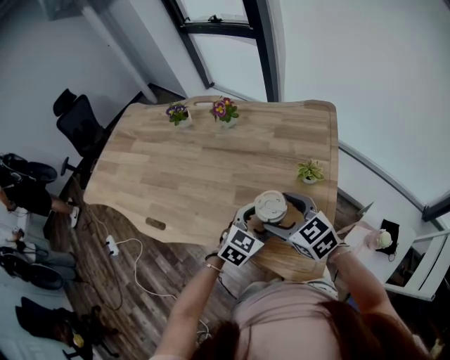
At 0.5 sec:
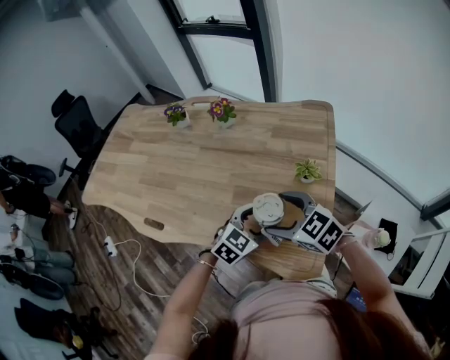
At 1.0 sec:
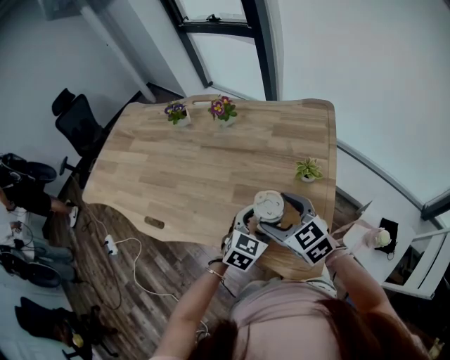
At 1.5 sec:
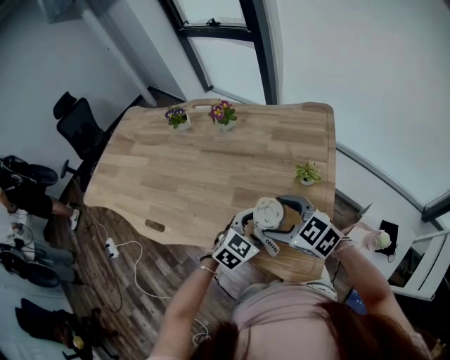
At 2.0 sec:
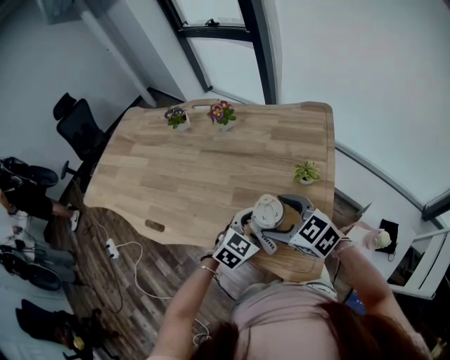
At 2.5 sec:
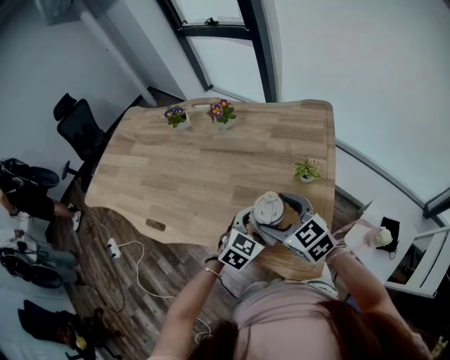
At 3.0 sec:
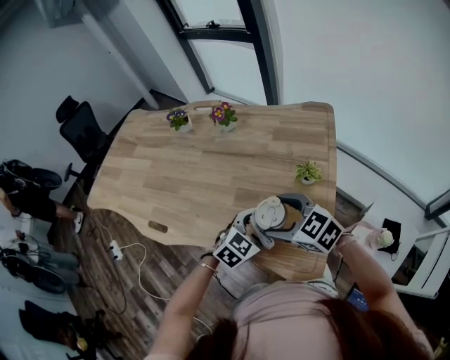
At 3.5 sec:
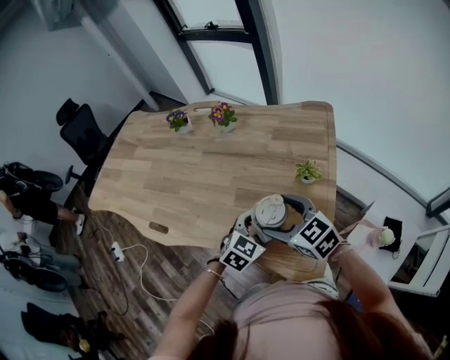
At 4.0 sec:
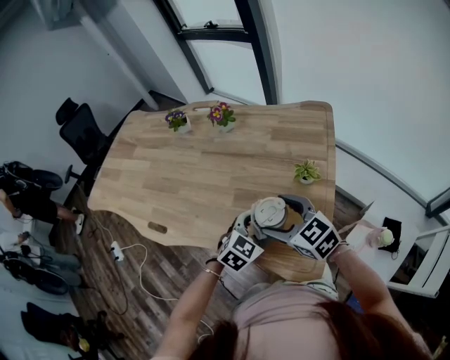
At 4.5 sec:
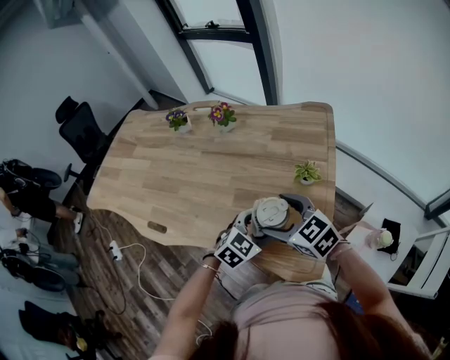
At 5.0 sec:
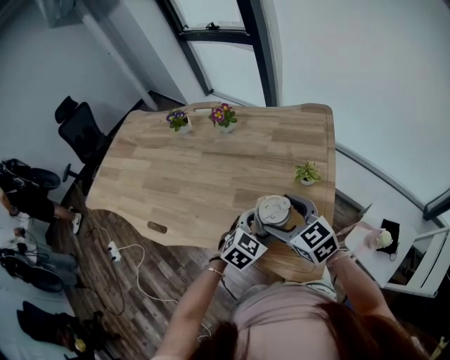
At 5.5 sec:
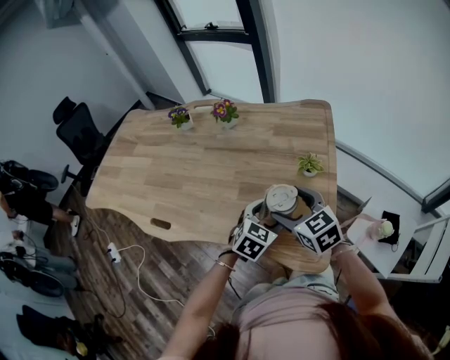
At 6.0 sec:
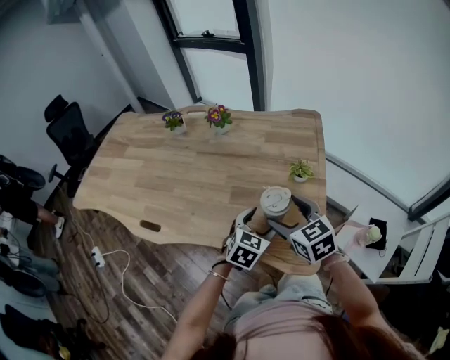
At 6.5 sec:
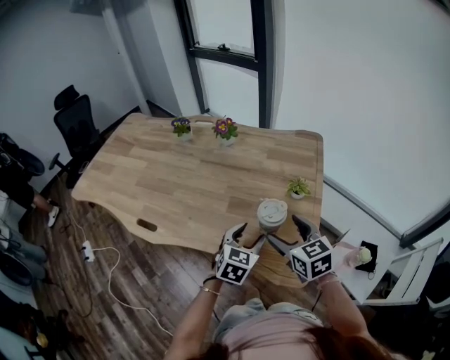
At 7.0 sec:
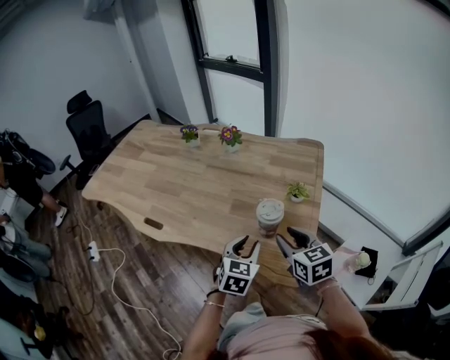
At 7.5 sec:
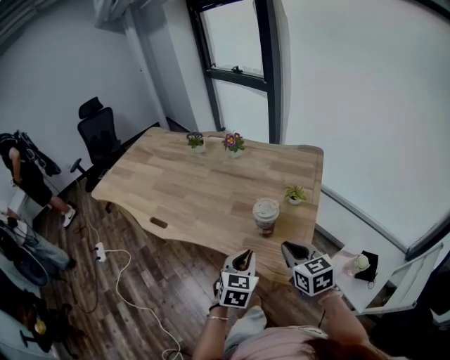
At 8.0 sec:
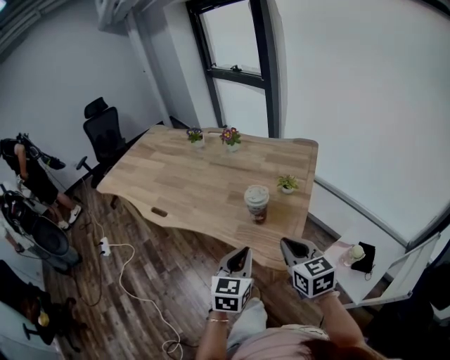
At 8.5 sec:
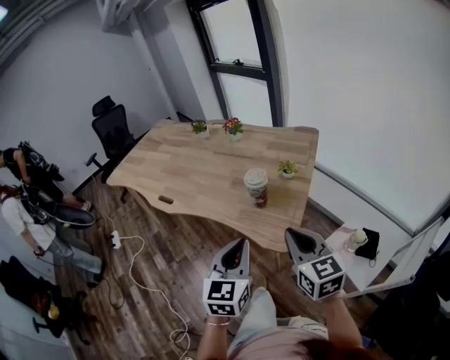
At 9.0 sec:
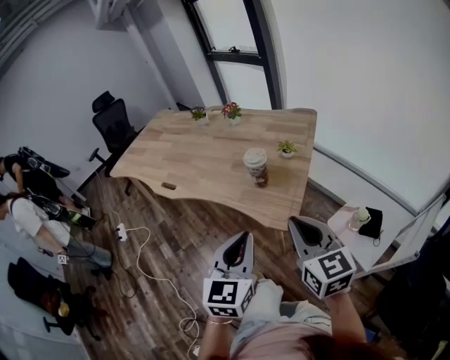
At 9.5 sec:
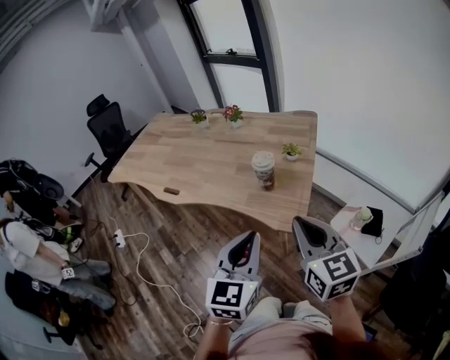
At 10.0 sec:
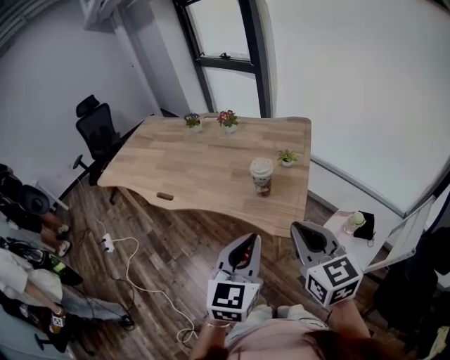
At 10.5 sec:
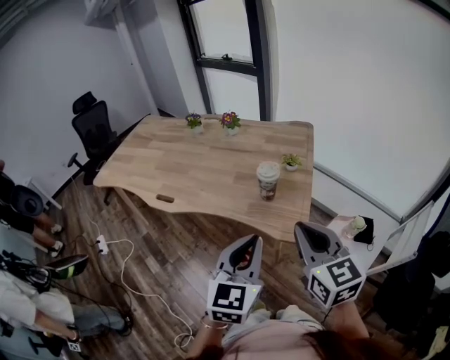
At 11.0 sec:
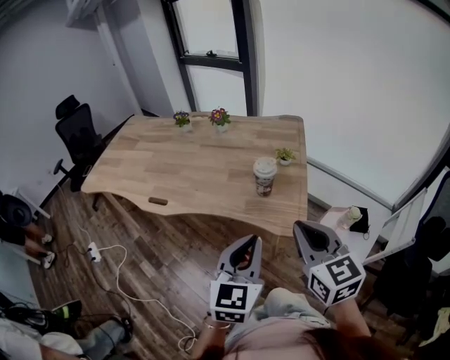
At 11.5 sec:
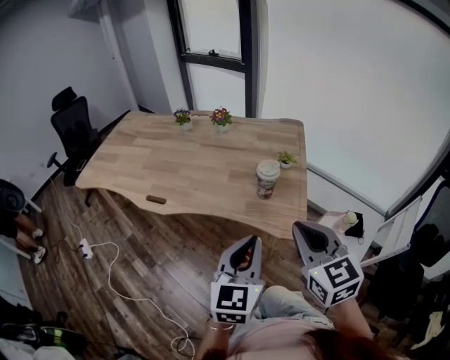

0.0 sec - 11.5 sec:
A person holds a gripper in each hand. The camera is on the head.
0.0 sec - 4.0 sec: There are only small adjustments of the grippers.
4.0 sec - 6.0 sec: The right gripper changes its angle by approximately 20 degrees.
6.0 sec - 7.5 sec: The left gripper shifts some 15 cm backward and upward, changes its angle by approximately 30 degrees, and closes; the right gripper moves backward, some 10 cm, and closes its fingers.
7.5 sec - 9.5 sec: Both grippers move backward and upward, about 25 cm. The left gripper turns by roughly 20 degrees.
9.5 sec - 11.5 sec: The two grippers go approximately 10 cm to the left.

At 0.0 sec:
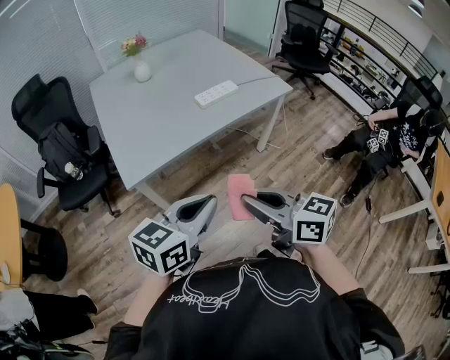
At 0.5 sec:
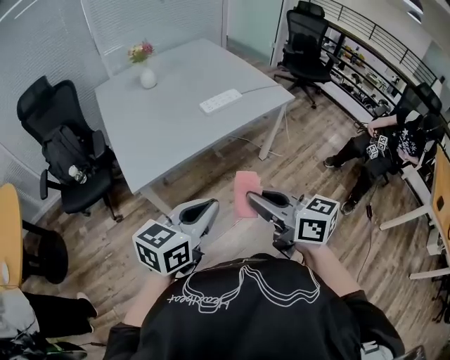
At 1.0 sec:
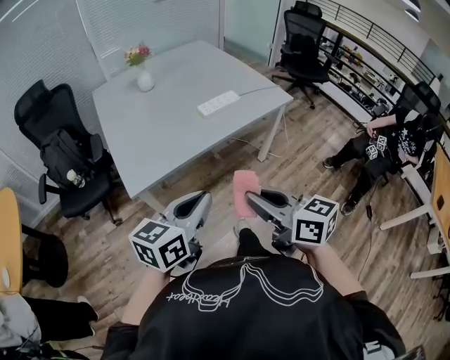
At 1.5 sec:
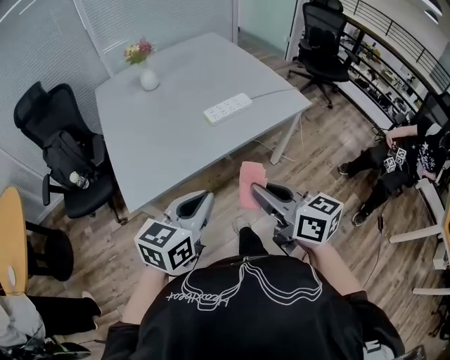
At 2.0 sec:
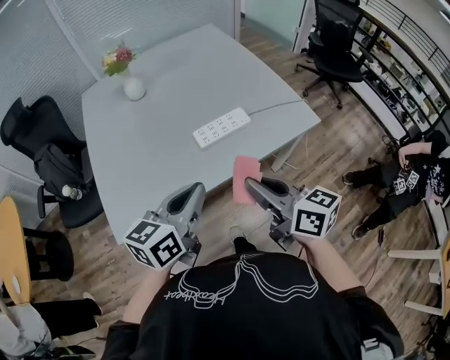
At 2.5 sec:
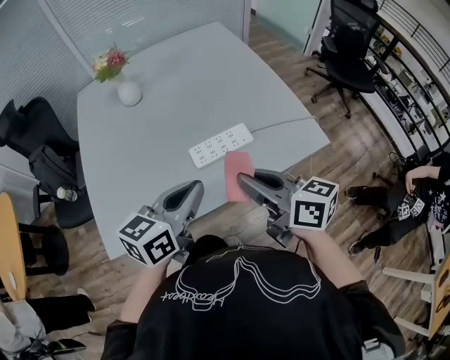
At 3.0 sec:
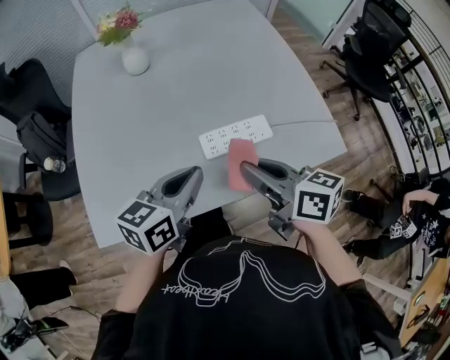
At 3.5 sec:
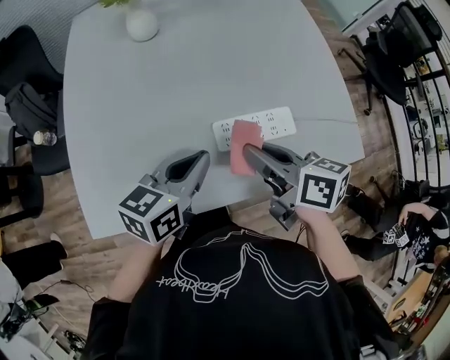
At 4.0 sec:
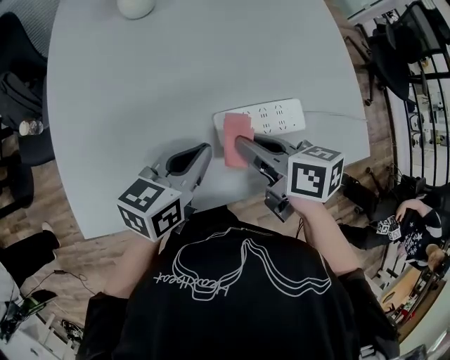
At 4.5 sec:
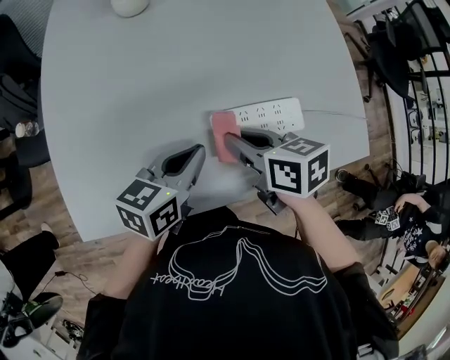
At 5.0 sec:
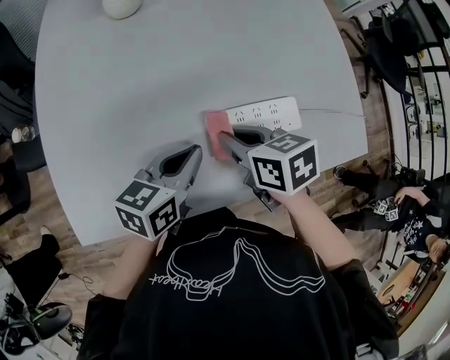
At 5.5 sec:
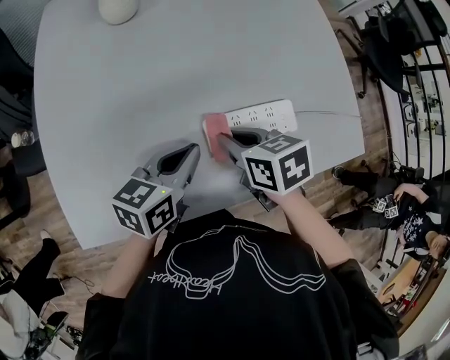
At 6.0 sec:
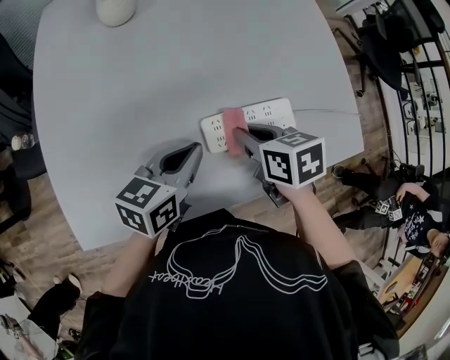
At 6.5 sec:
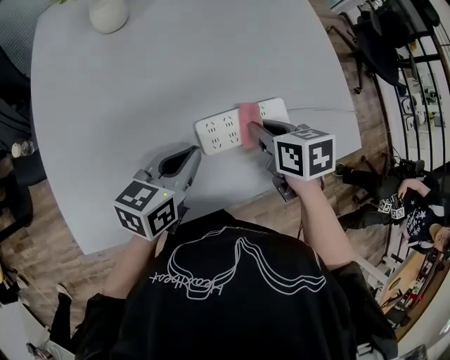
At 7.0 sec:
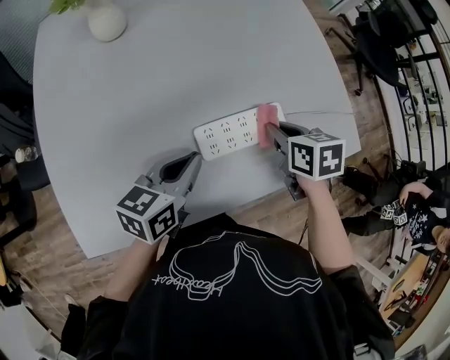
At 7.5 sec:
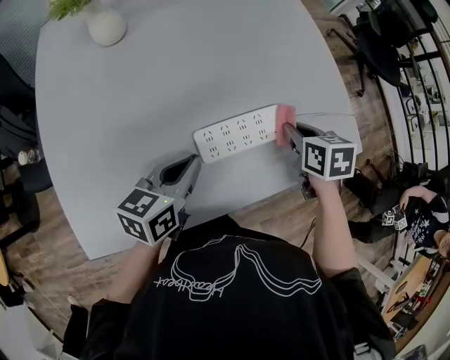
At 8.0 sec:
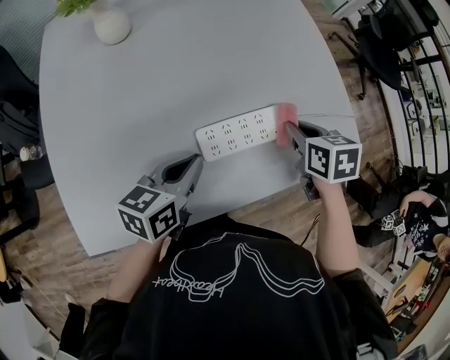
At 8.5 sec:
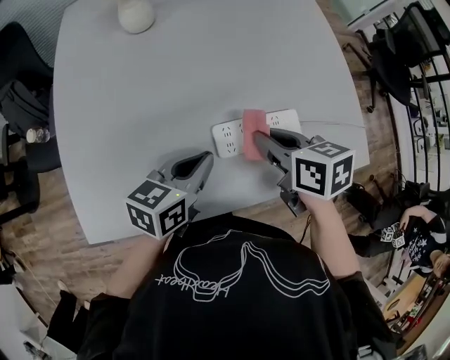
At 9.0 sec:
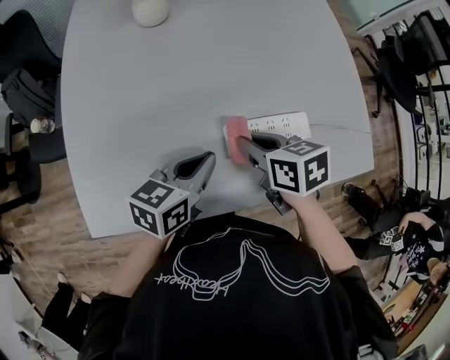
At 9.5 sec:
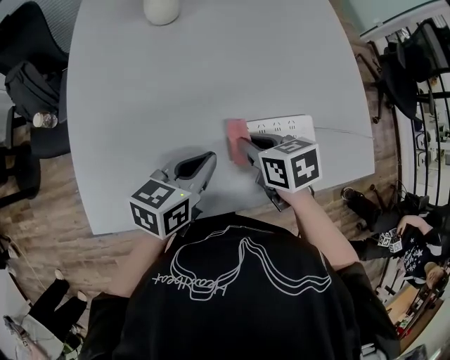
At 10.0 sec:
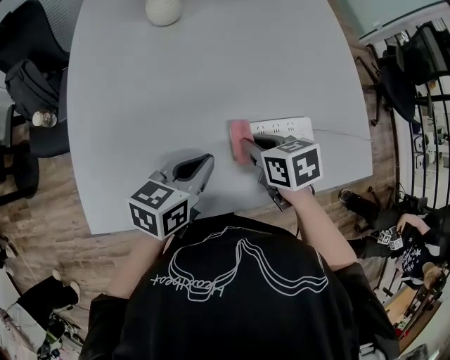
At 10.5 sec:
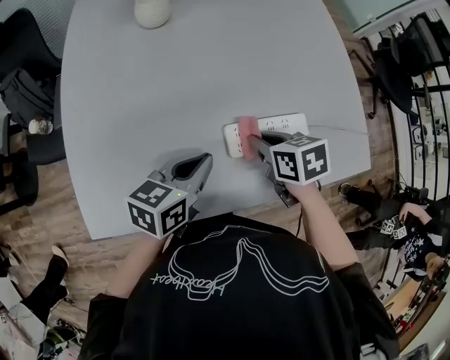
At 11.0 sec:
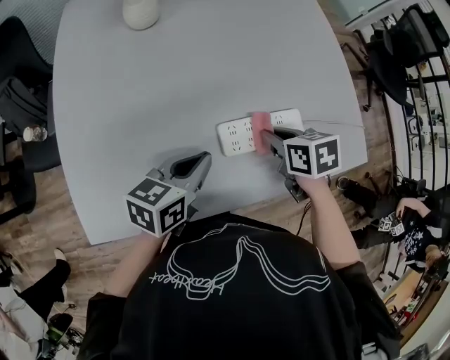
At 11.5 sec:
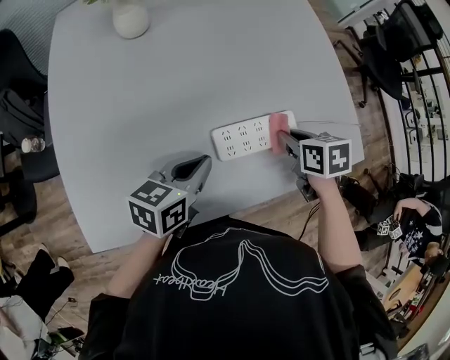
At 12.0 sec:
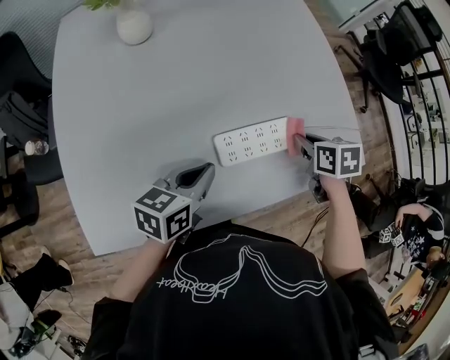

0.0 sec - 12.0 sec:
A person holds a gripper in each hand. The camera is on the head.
0.0 sec - 2.0 sec: Both grippers move forward, some 35 cm.
2.0 sec - 4.0 sec: Both grippers move forward and downward, some 35 cm. The right gripper changes its angle by approximately 30 degrees.
4.0 sec - 6.0 sec: The right gripper is displaced downward by approximately 5 cm, and turns by roughly 20 degrees.
6.0 sec - 8.0 sec: The right gripper moves to the right, roughly 15 cm.
8.0 sec - 10.0 sec: The right gripper goes approximately 20 cm to the left, and swivels about 20 degrees; the left gripper moves to the left, roughly 5 cm.
10.0 sec - 12.0 sec: The right gripper heads to the right, covering roughly 20 cm, and changes its angle by approximately 20 degrees.

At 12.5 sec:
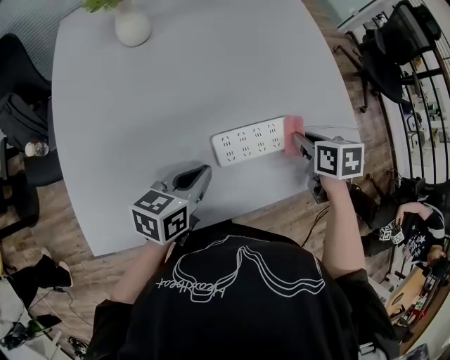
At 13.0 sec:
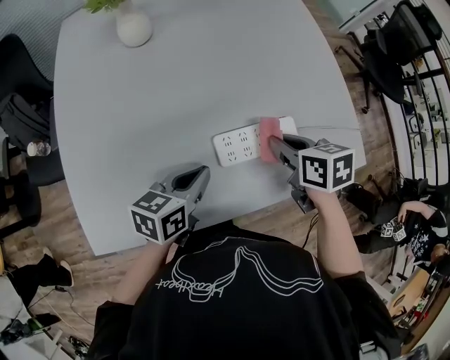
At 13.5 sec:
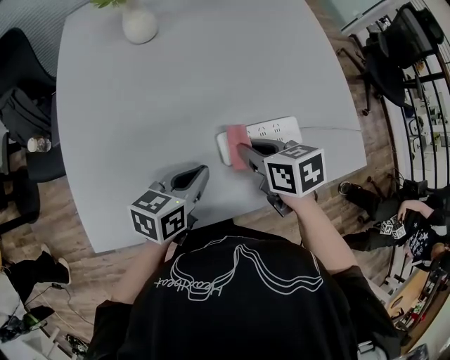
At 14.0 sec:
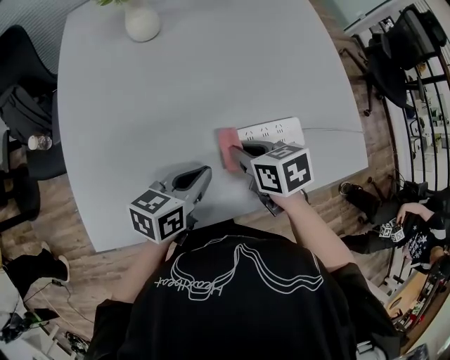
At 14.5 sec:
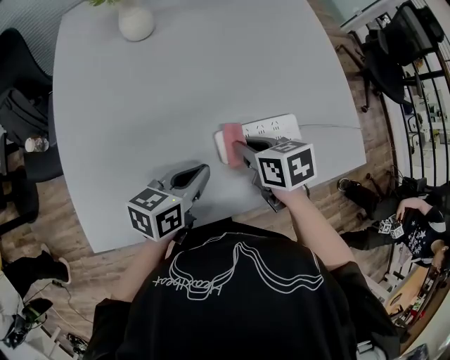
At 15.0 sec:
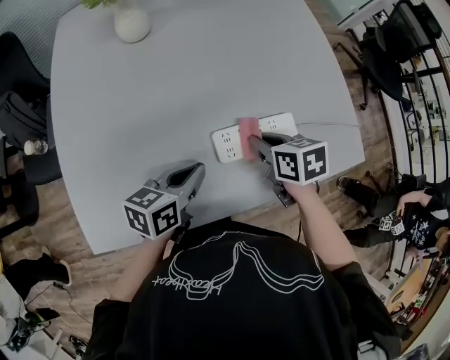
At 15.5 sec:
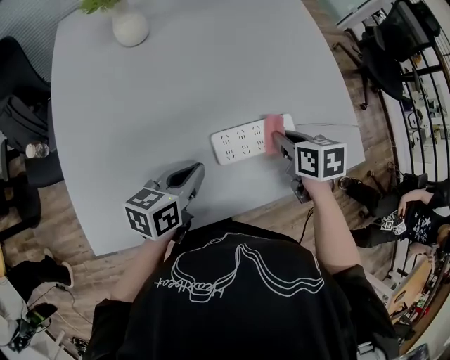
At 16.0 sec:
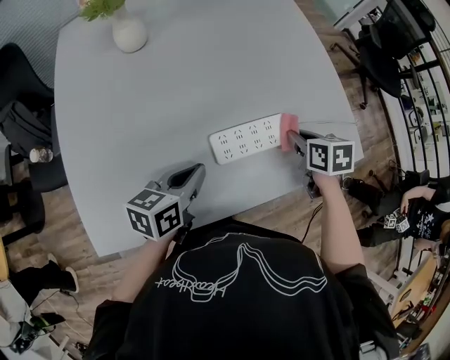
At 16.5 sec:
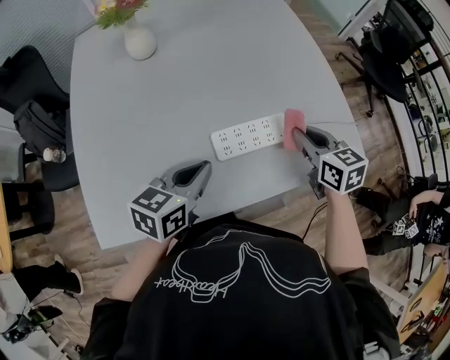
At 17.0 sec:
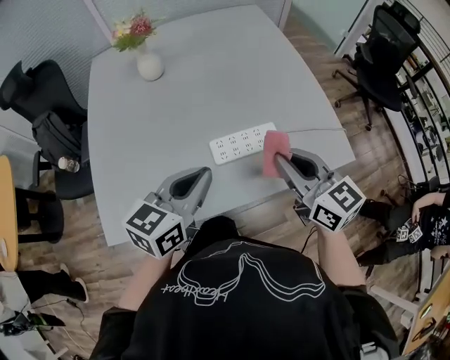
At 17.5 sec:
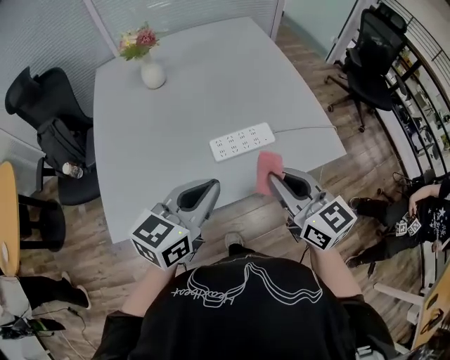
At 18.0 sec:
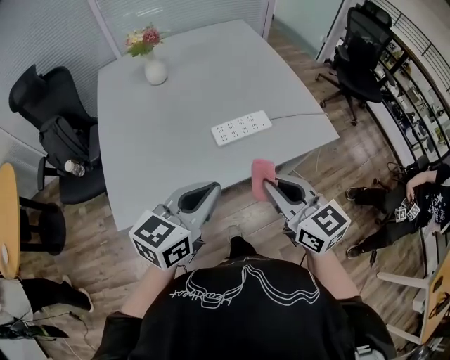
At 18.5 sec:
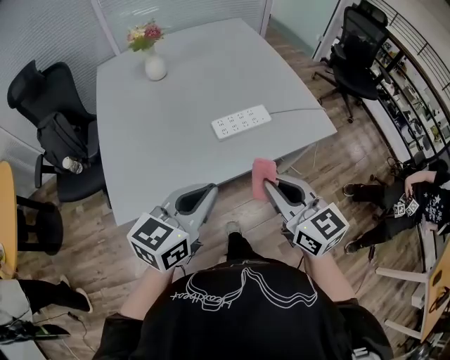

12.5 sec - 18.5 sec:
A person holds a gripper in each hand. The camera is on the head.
12.5 sec - 14.5 sec: The right gripper heads to the left, covering roughly 15 cm.
14.5 sec - 16.5 sec: The left gripper is displaced upward by some 5 cm. Meanwhile the right gripper shifts some 20 cm to the right and upward, and changes its angle by some 30 degrees.
16.5 sec - 18.5 sec: The grippers both shift backward and upward by roughly 35 cm. The right gripper turns by some 20 degrees.
